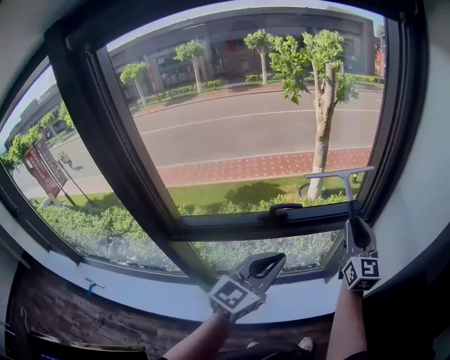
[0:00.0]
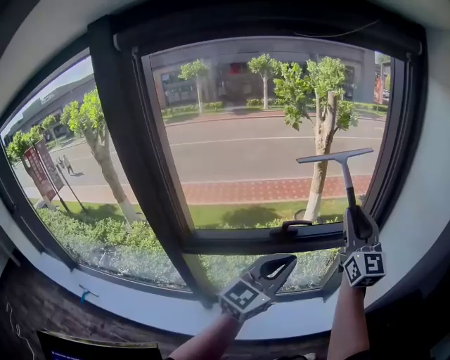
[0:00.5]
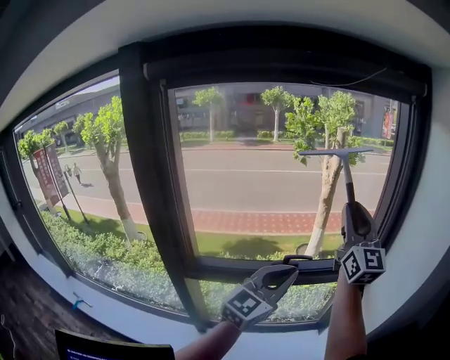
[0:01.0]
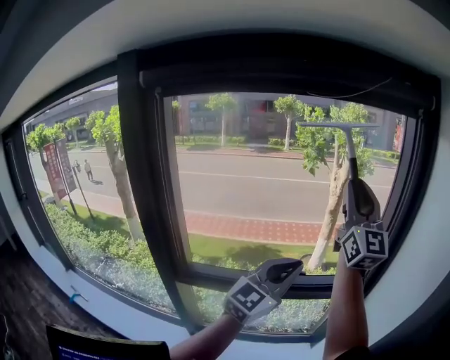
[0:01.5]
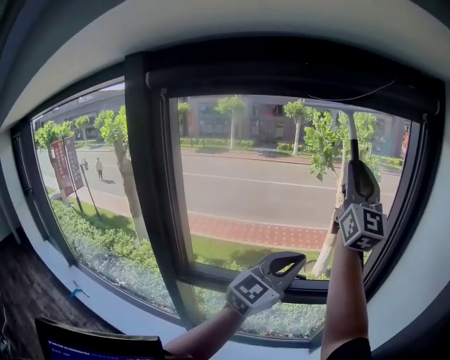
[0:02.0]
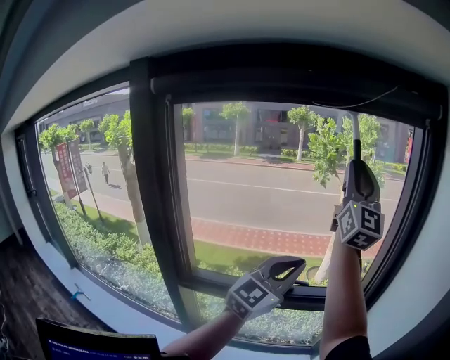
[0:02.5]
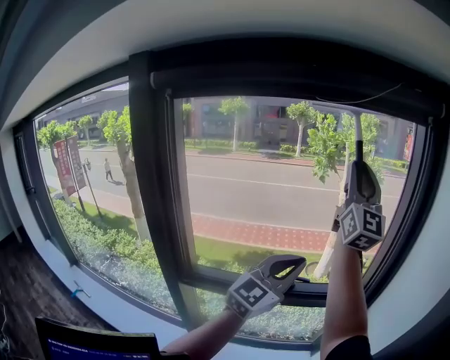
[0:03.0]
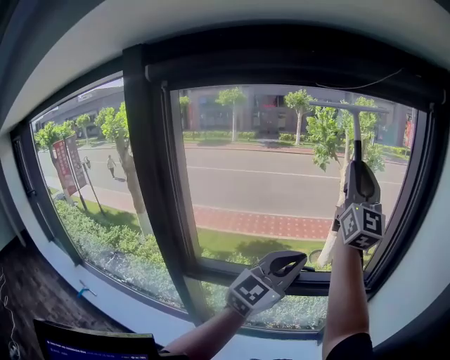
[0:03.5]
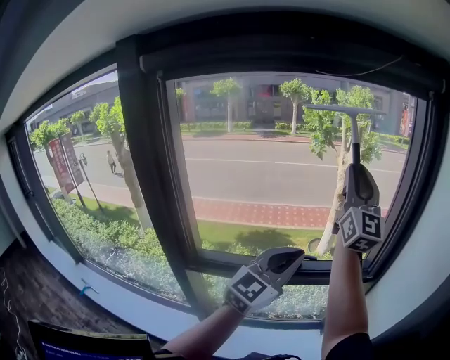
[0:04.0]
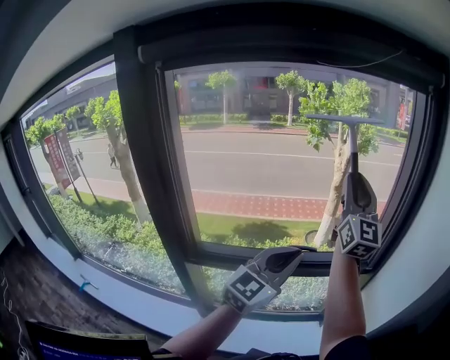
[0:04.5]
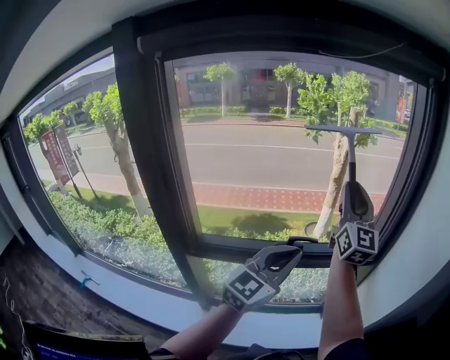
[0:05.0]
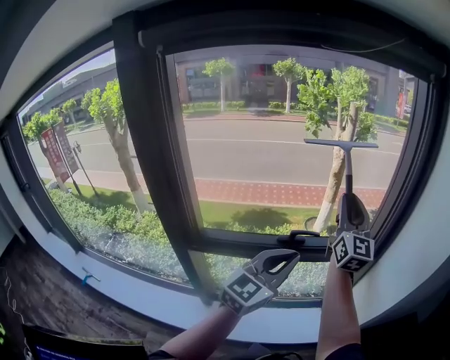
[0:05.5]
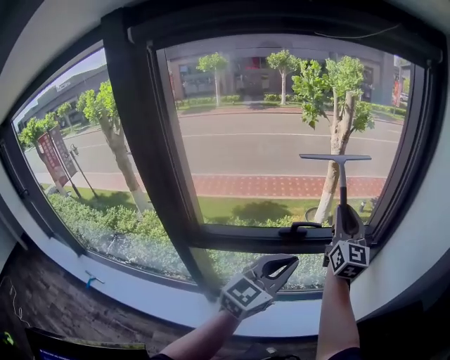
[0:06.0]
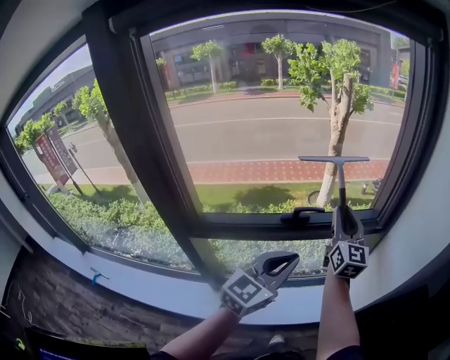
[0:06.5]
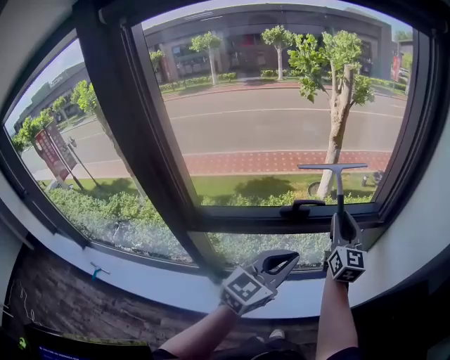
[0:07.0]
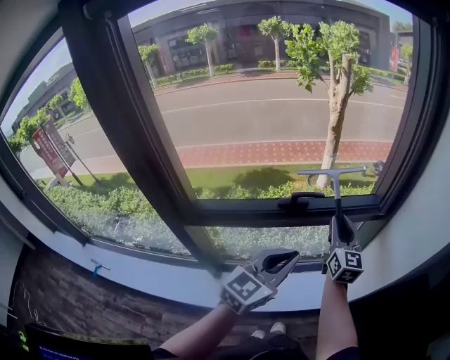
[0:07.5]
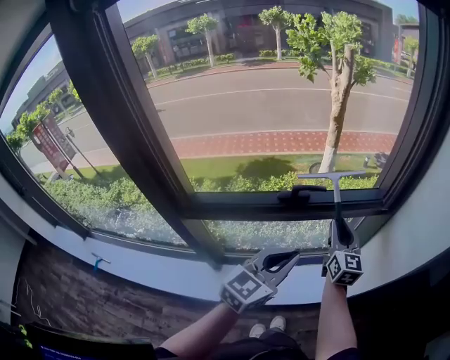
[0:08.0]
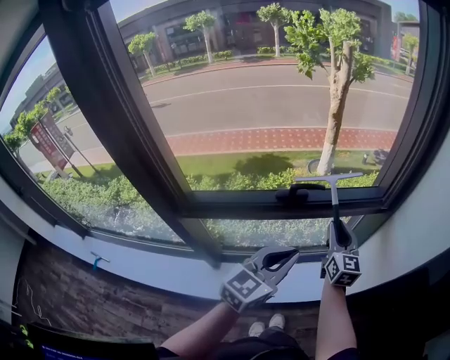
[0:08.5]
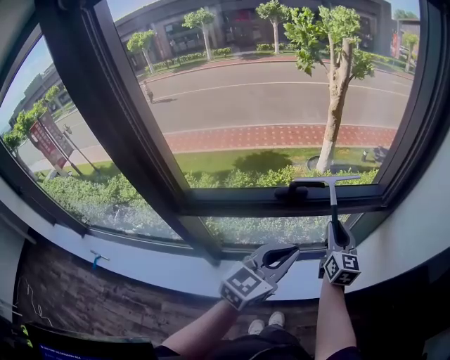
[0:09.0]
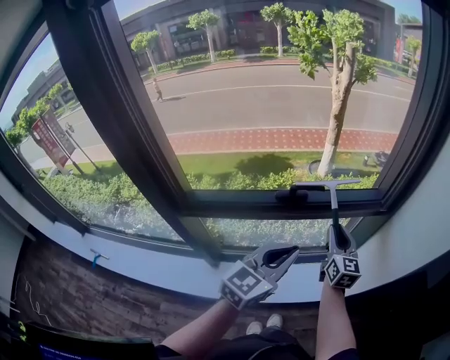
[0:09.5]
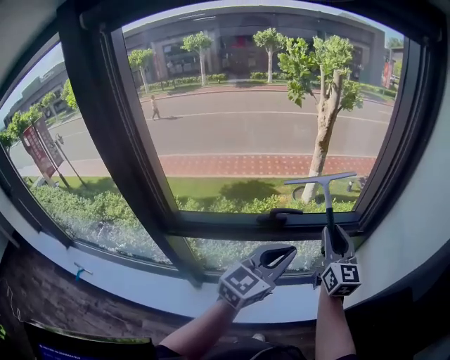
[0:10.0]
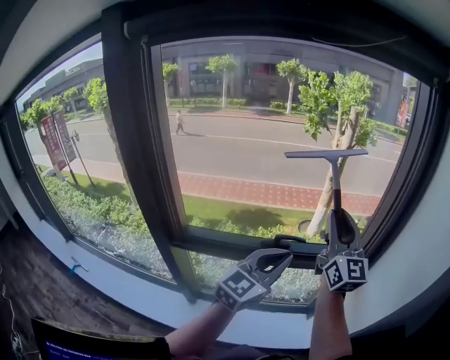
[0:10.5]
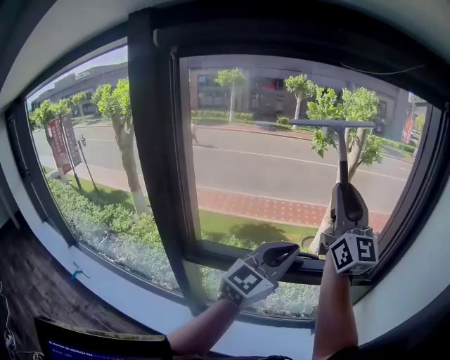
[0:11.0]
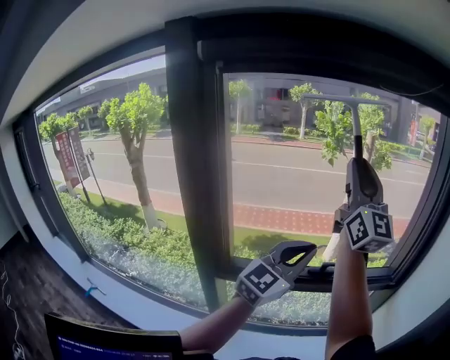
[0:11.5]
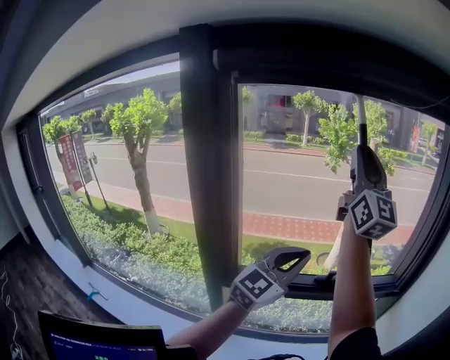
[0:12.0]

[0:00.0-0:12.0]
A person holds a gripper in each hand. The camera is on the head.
0:00.0 to 0:02.0: The right gripper heads upward, covering approximately 40 cm, and tilts its fingers roughly 30 degrees upward. Meanwhile the left gripper shifts about 20 cm upward and forward.
0:02.0 to 0:04.0: The right gripper shifts roughly 5 cm downward.
0:04.0 to 0:06.0: The left gripper is displaced downward and backward by about 10 cm. The right gripper travels downward by approximately 20 cm, and changes its angle by some 20 degrees.
0:06.0 to 0:08.0: The right gripper heads downward, covering approximately 20 cm. The left gripper travels downward by approximately 10 cm.
0:08.0 to 0:10.0: The left gripper shifts some 5 cm upward; the right gripper heads upward, covering about 10 cm.
0:10.0 to 0:12.0: The right gripper moves upward and to the left, some 50 cm, and tips its fingers upward by roughly 40 degrees. The left gripper moves to the left and upward, approximately 25 cm, and turns by roughly 20 degrees.

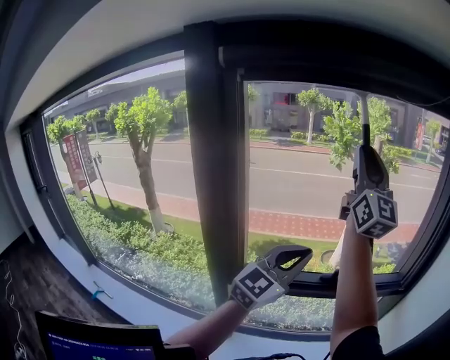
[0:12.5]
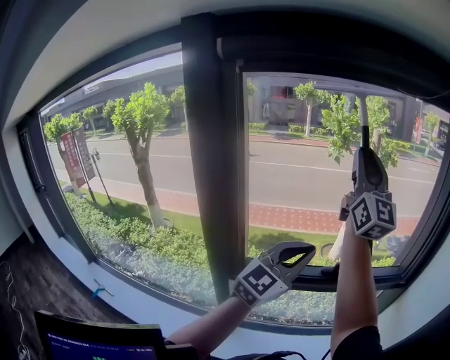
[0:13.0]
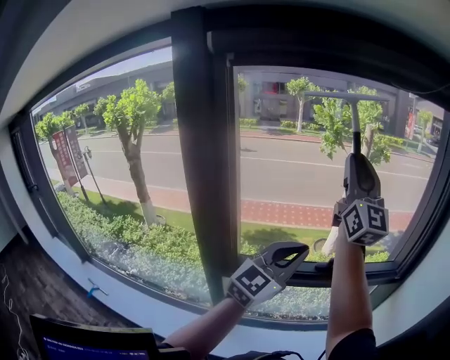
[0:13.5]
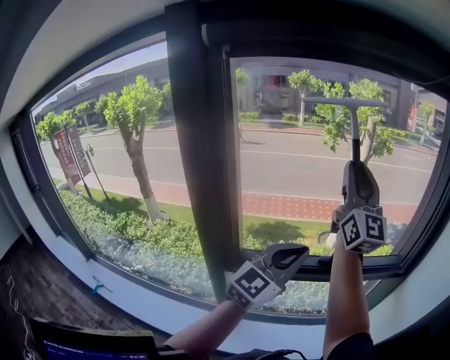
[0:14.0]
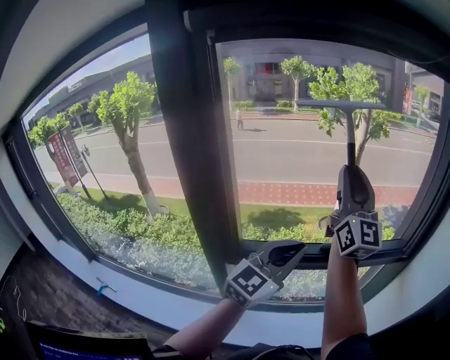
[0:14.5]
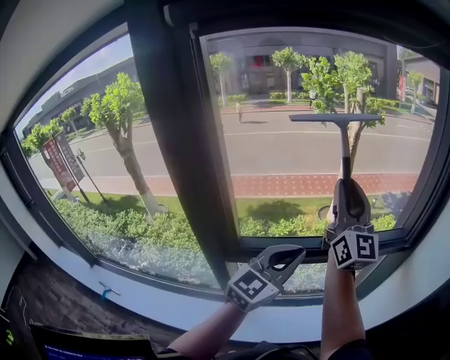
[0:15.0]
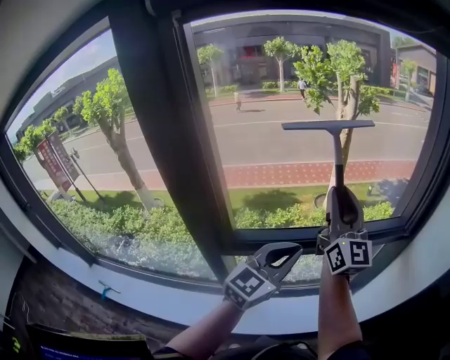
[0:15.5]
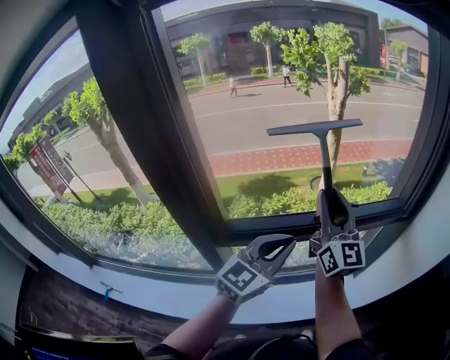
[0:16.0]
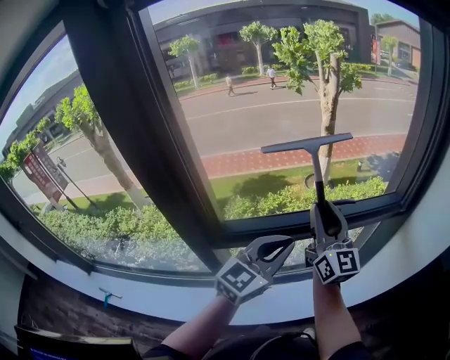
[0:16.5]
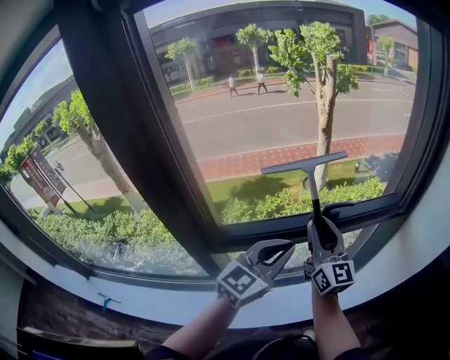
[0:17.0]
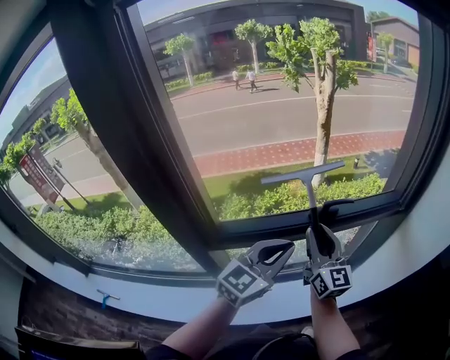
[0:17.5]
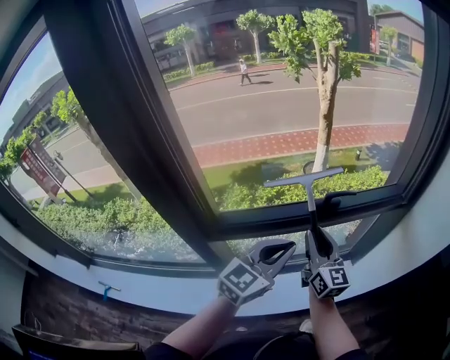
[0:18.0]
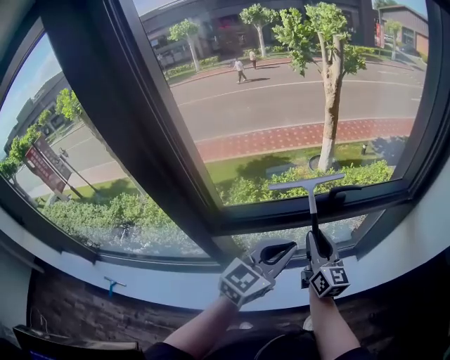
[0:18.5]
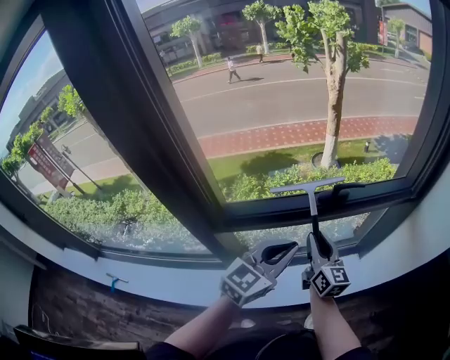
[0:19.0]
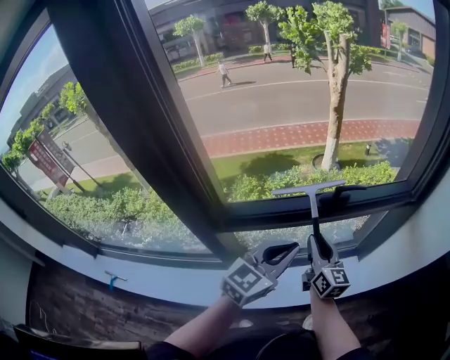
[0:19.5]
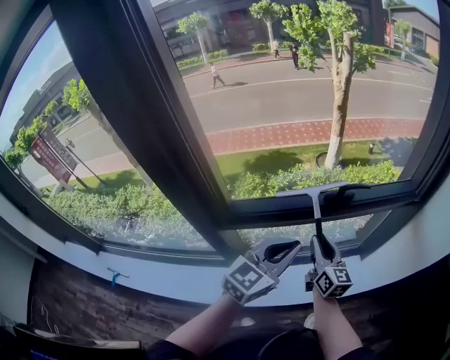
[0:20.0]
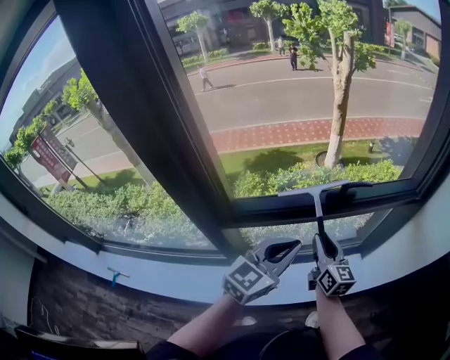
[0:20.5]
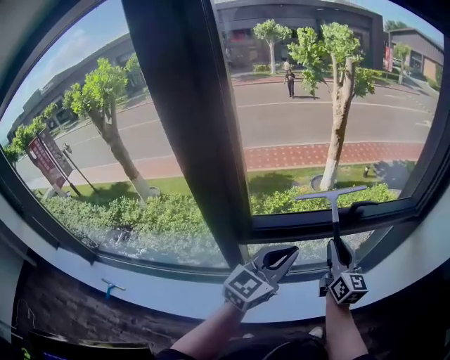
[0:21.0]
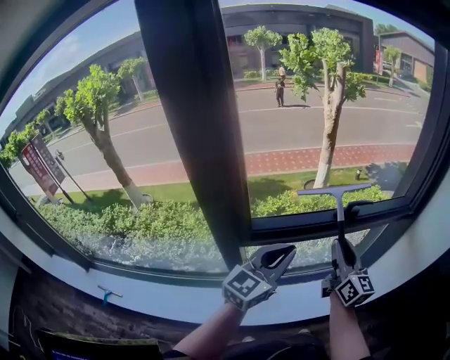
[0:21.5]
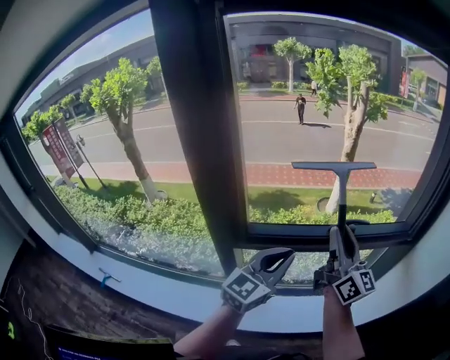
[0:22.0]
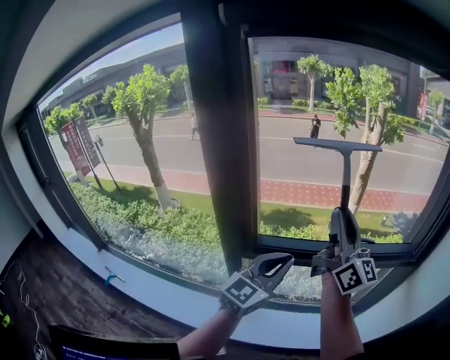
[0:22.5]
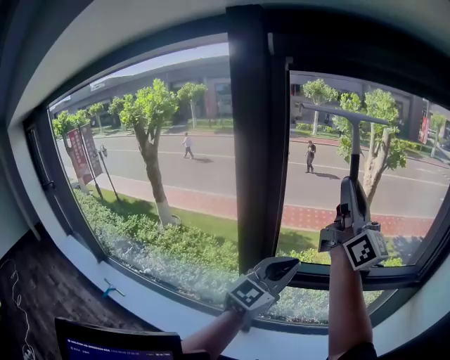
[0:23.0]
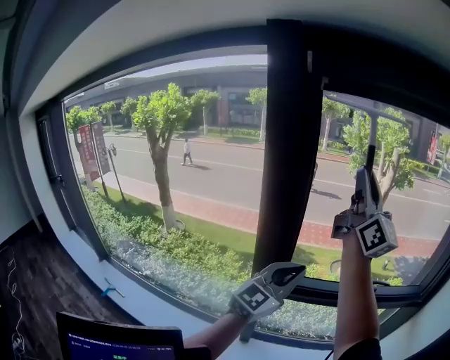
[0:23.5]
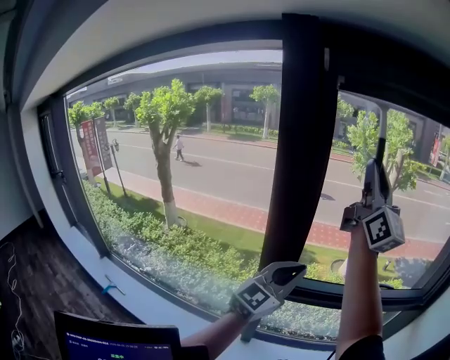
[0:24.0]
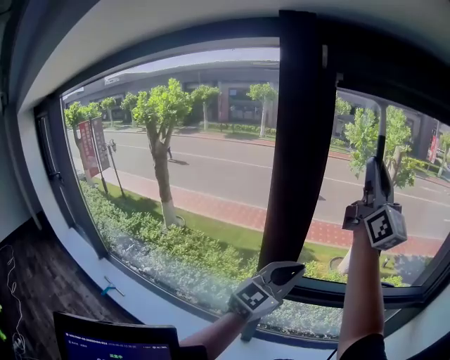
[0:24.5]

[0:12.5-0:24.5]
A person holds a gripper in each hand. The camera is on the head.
0:12.5 to 0:14.5: The right gripper is displaced downward by roughly 15 cm, while the left gripper moves downward, some 5 cm.
0:14.5 to 0:16.5: The right gripper travels downward by about 20 cm, while the left gripper goes some 10 cm downward.
0:16.5 to 0:18.5: The right gripper heads downward, covering approximately 15 cm, and swivels approximately 20 degrees. Meanwhile the left gripper is displaced downward by approximately 5 cm.
0:18.5 to 0:20.5: The grippers stay close to where they were, moving slightly.
0:20.5 to 0:22.5: The left gripper travels upward and to the left by roughly 10 cm. Meanwhile the right gripper travels upward by about 30 cm, and tilts its fingers about 40 degrees upward.
0:22.5 to 0:24.5: The left gripper heads to the left and upward, covering approximately 15 cm. The right gripper shifts about 25 cm upward and to the left.

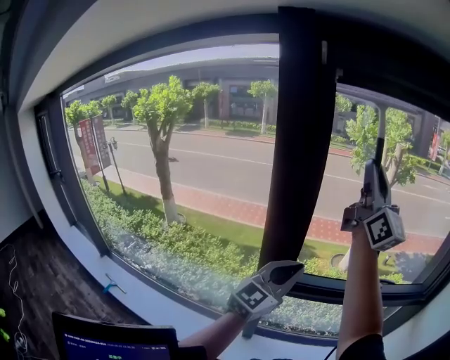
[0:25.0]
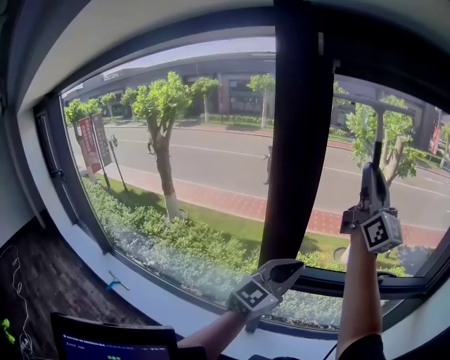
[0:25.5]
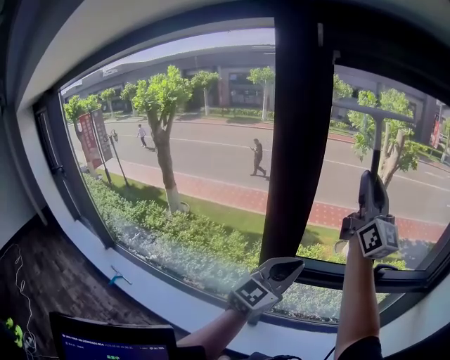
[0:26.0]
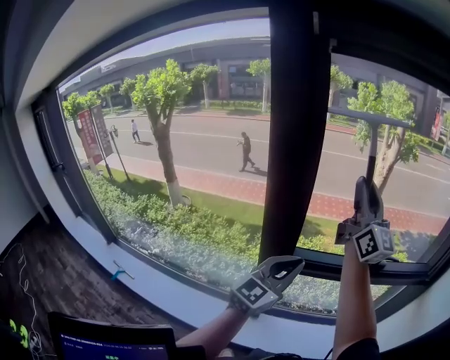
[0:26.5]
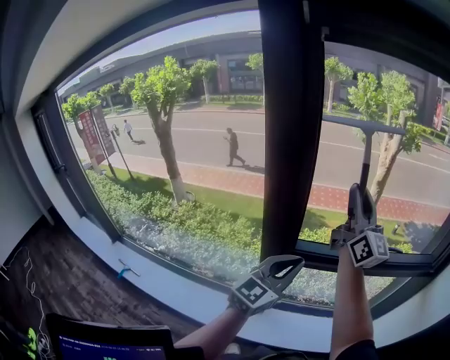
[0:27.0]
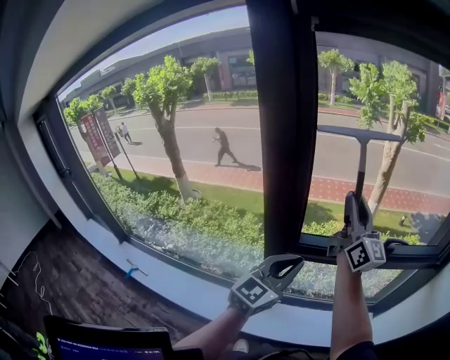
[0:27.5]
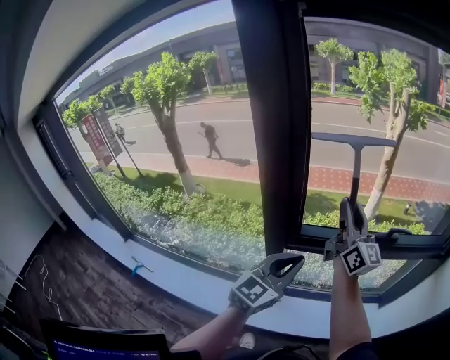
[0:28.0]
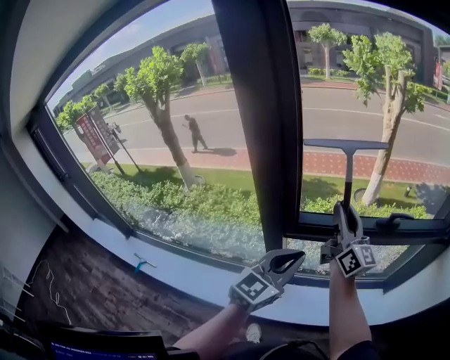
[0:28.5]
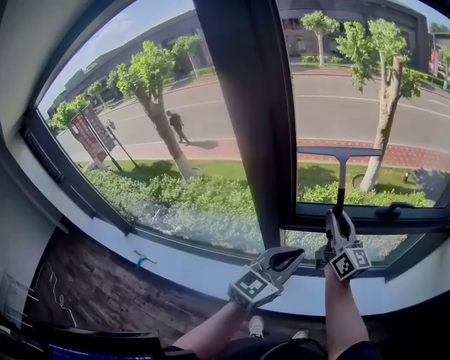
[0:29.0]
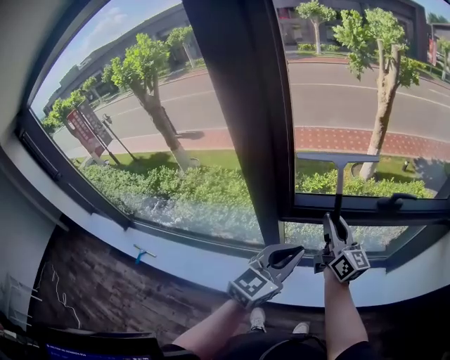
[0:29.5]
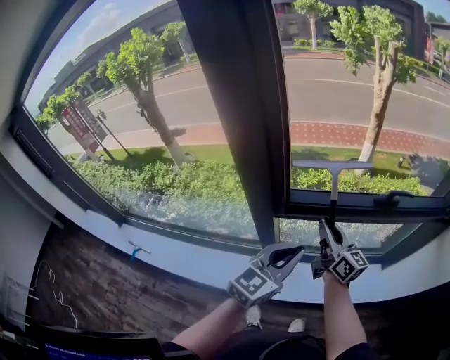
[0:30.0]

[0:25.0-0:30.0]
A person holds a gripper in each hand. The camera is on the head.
0:25.0 to 0:27.5: The right gripper heads downward, covering about 20 cm. The left gripper shifts some 10 cm downward and backward.
0:27.5 to 0:30.0: The right gripper is displaced downward by approximately 25 cm, and rotates about 30 degrees. The left gripper is displaced downward by some 10 cm.
